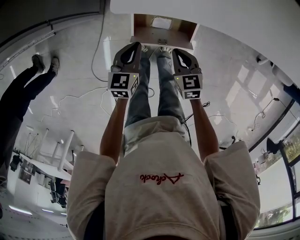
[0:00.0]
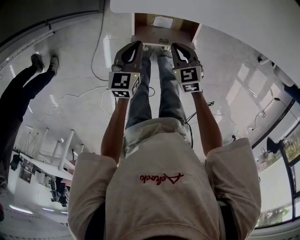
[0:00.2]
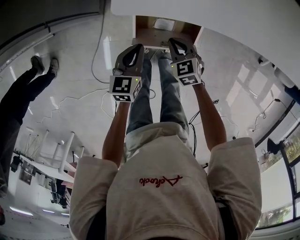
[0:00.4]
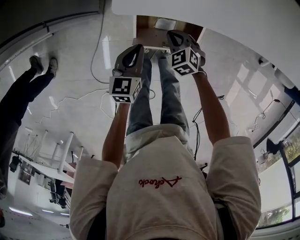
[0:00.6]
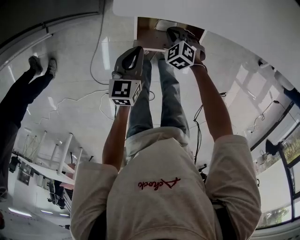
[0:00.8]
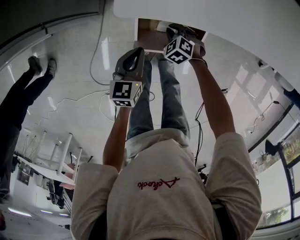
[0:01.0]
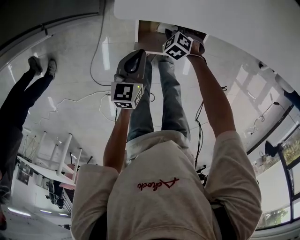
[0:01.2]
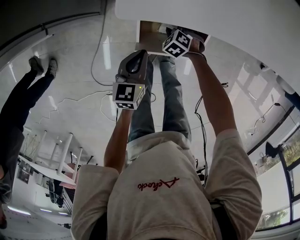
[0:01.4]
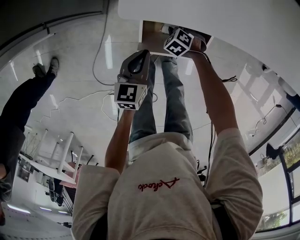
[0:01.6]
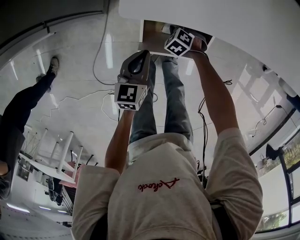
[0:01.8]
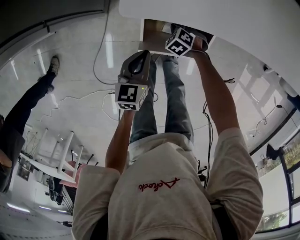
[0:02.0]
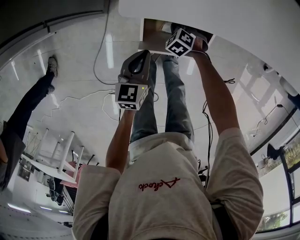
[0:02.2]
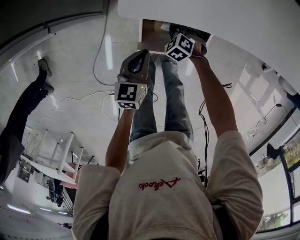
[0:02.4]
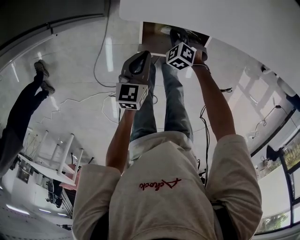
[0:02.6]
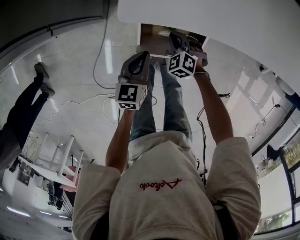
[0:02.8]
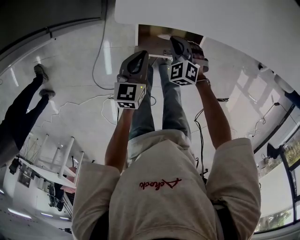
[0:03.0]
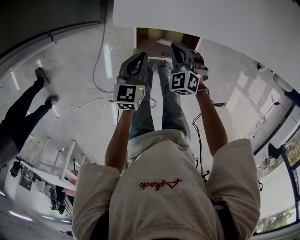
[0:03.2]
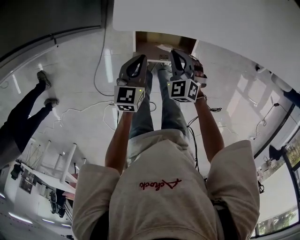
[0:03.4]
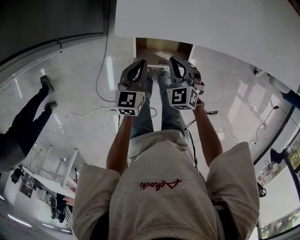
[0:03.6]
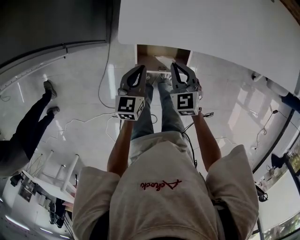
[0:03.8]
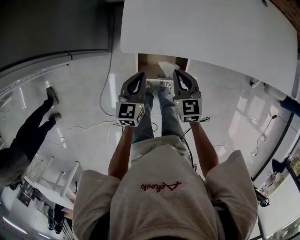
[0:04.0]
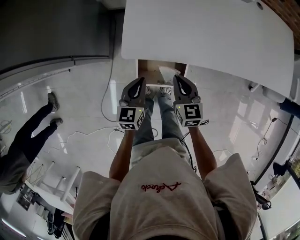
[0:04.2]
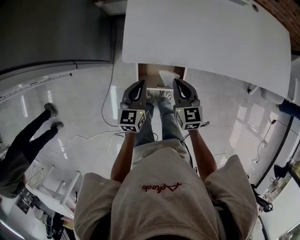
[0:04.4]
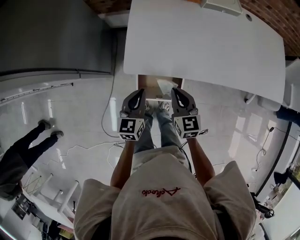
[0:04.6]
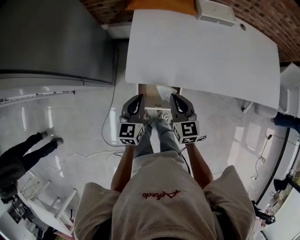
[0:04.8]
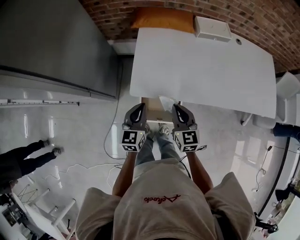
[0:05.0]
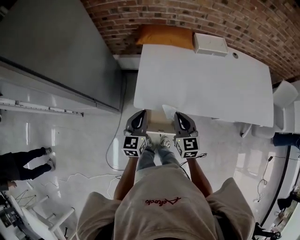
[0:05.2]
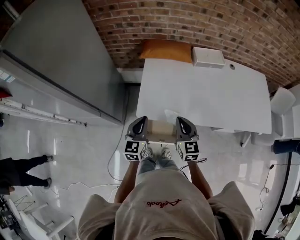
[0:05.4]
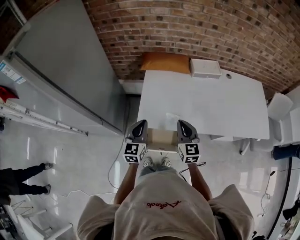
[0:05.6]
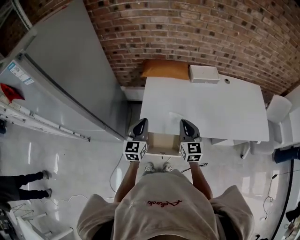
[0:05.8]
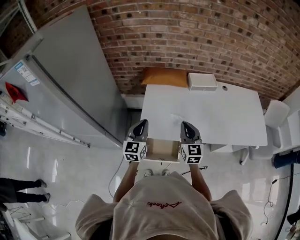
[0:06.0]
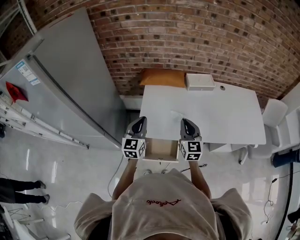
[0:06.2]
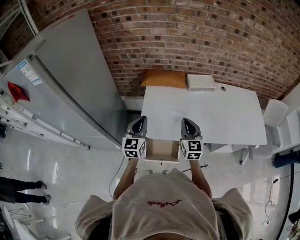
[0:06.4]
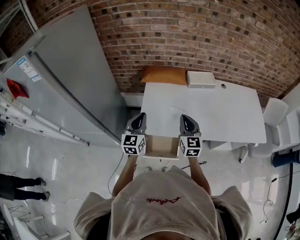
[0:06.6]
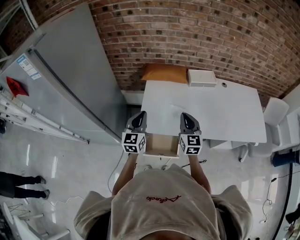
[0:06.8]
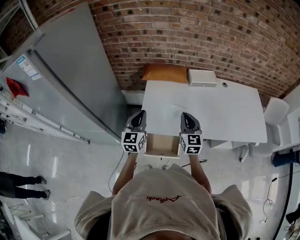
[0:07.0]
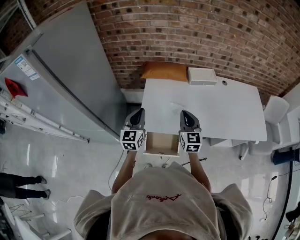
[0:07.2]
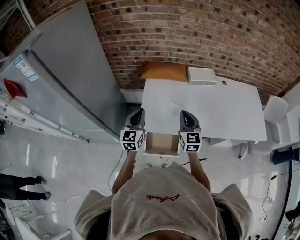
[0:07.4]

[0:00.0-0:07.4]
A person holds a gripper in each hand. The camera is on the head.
0:00.0 to 0:01.4: The right gripper shifts roughly 20 cm downward and forward, rotates around the line of its fingers by about 40 degrees, counterclockwise from behind, and opens its fingers.
0:01.4 to 0:03.0: The right gripper moves upward, approximately 10 cm, swivels approximately 20 degrees, and closes.
0:03.0 to 0:04.4: The left gripper heads upward, covering about 15 cm; the right gripper goes approximately 25 cm upward, and twists roughly 50 degrees clockwise, seen from behind.
0:04.4 to 0:06.0: The grippers both shift upward by some 25 cm. The left gripper swivels roughly 20 degrees. Meanwhile the right gripper turns by some 20 degrees.
0:06.0 to 0:07.4: There are only small adjustments of the grippers.

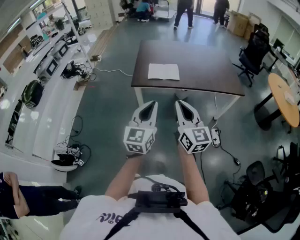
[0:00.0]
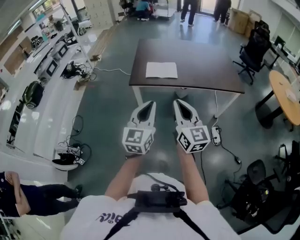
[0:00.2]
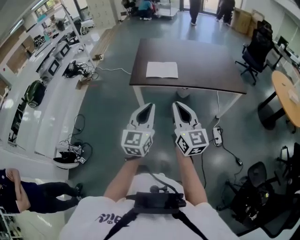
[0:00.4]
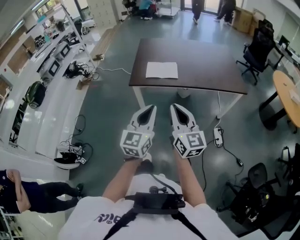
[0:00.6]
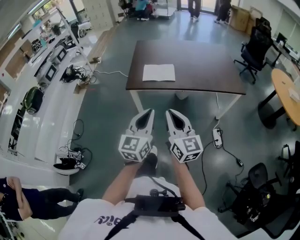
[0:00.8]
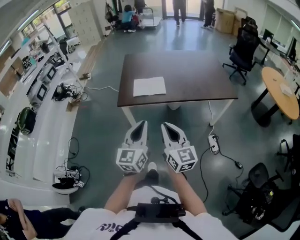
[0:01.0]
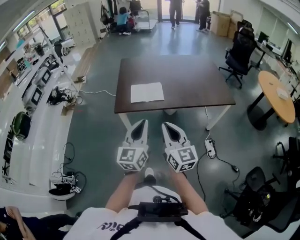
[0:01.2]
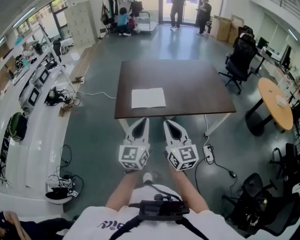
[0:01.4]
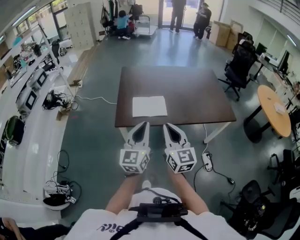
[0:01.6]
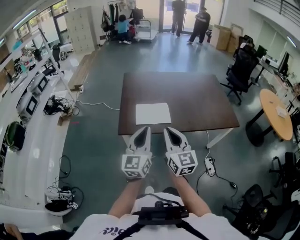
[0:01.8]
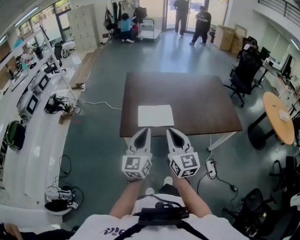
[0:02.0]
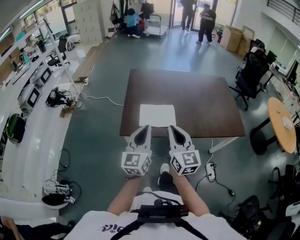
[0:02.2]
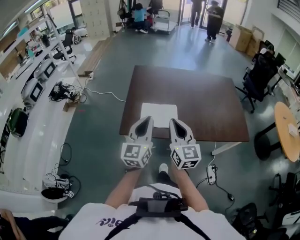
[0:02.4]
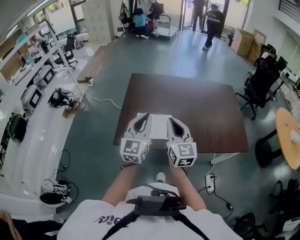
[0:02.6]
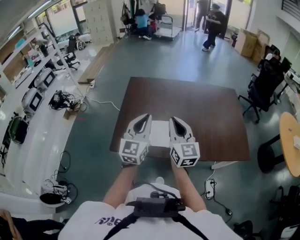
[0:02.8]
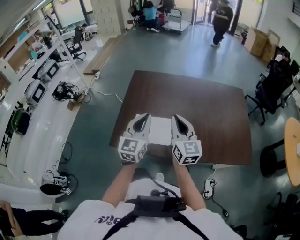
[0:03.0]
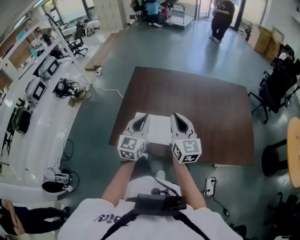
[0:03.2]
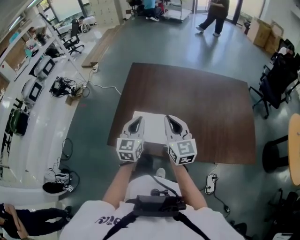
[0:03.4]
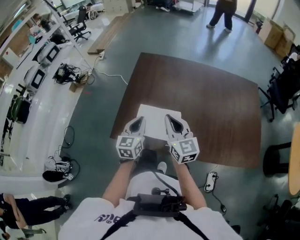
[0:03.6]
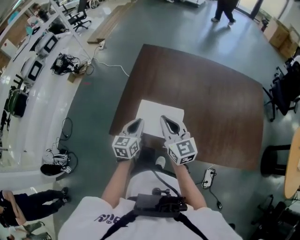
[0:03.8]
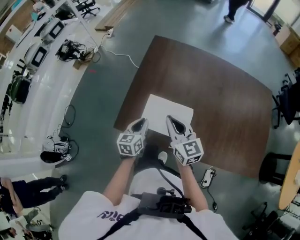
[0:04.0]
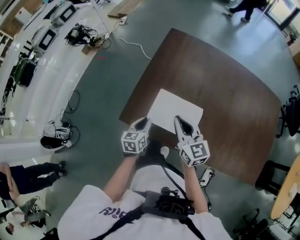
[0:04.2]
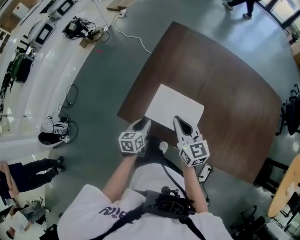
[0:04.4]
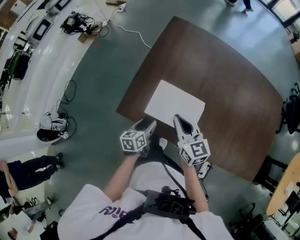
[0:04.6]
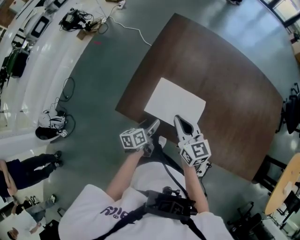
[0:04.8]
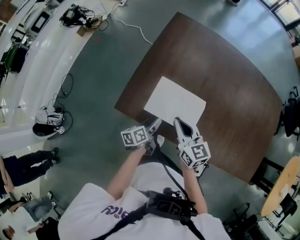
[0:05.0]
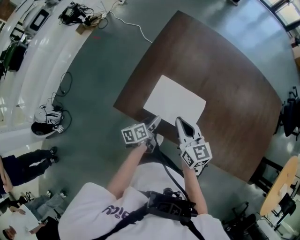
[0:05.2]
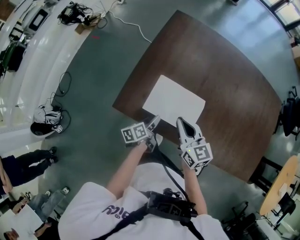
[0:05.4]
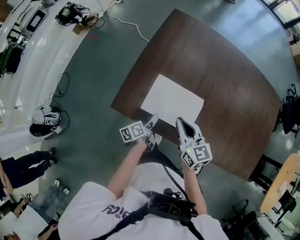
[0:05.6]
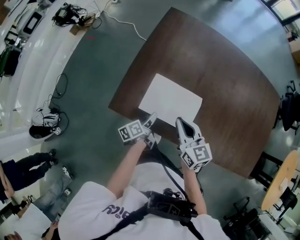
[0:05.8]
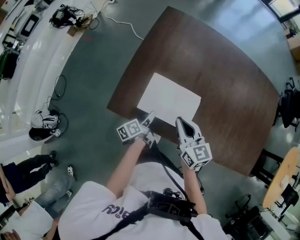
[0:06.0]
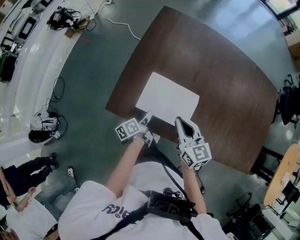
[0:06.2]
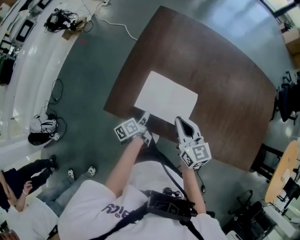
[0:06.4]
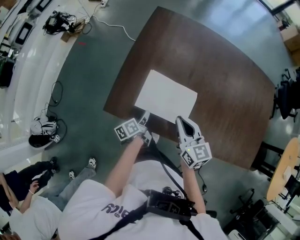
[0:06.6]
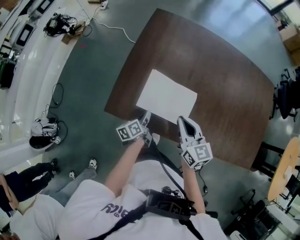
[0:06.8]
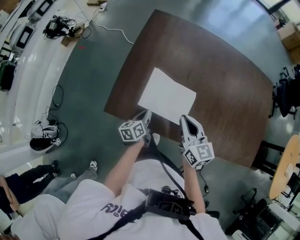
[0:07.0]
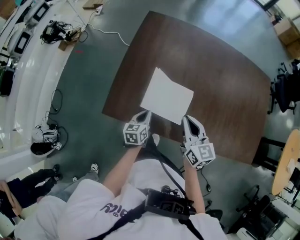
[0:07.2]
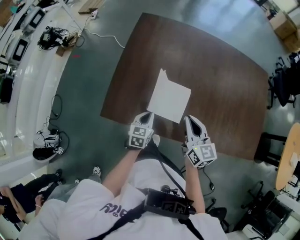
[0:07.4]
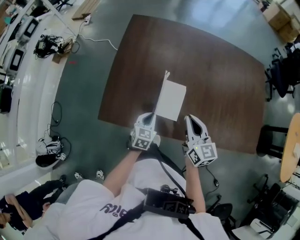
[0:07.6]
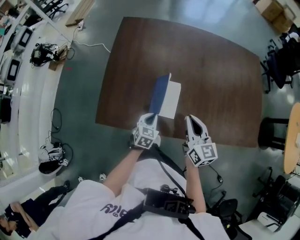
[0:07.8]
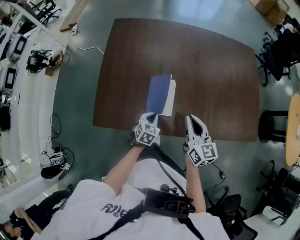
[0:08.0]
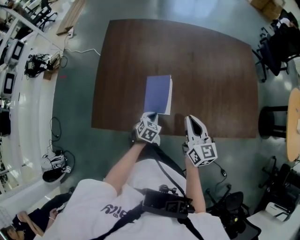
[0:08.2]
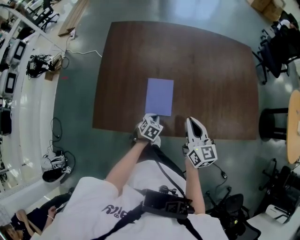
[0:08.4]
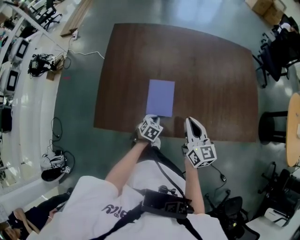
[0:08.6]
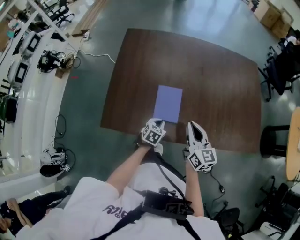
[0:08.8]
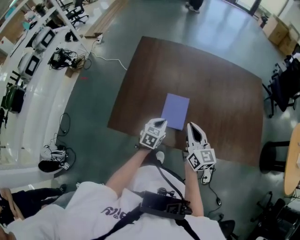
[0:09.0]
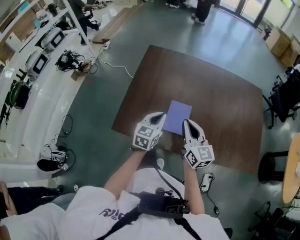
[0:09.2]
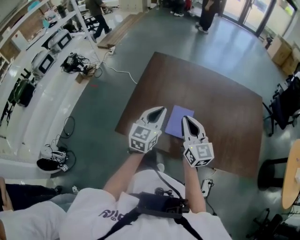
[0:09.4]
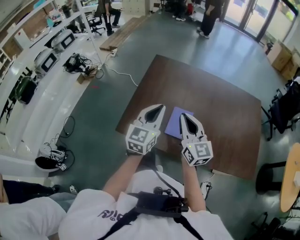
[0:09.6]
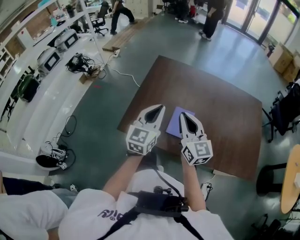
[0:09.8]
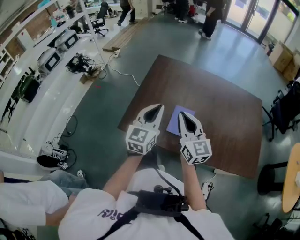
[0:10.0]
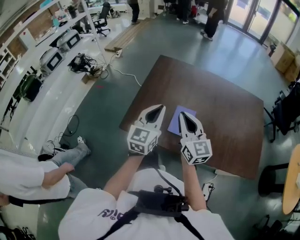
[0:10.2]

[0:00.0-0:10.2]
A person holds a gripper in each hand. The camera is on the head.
0:00.0 to 0:01.4: Both grippers travel together forward, roughly 20 cm.
0:01.4 to 0:03.0: The pair of grippers is taken forward, approximately 40 cm.
0:03.0 to 0:04.4: The left gripper travels downward and to the left by roughly 40 cm, and tilts its fingers roughly 40 degrees downward; the right gripper shifts about 25 cm downward, to the left and forward, and swivels some 30 degrees.
0:04.4 to 0:05.8: The left gripper shifts roughly 10 cm downward and to the right, turns by about 40 degrees, and opens its fingers, while the right gripper changes place by some 5 cm.
0:05.8 to 0:07.2: The left gripper twists about 50 degrees clockwise, seen from behind, and closes. Meanwhile the right gripper shifts some 5 cm to the right.
0:07.2 to 0:08.8: The two grippers go about 15 cm to the right. The left gripper rotates roughly 40 degrees.
0:08.8 to 0:10.2: The right gripper heads upward and to the left, covering roughly 20 cm, and rotates some 30 degrees. Meanwhile the left gripper heads upward, covering approximately 35 cm, and tips its fingers upward by roughly 50 degrees.

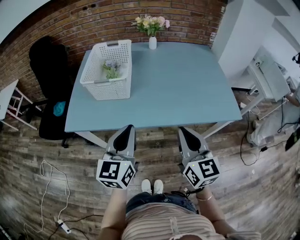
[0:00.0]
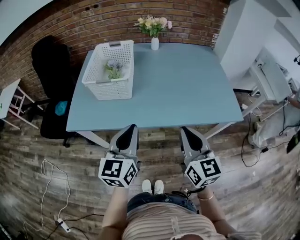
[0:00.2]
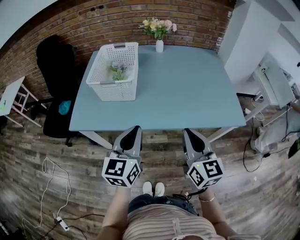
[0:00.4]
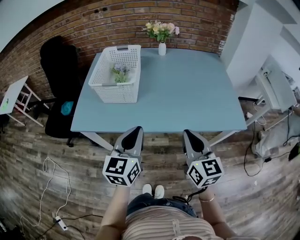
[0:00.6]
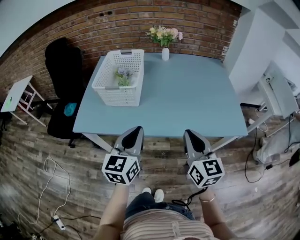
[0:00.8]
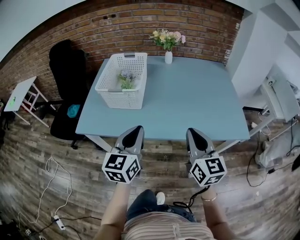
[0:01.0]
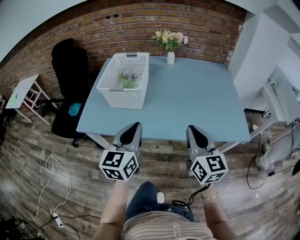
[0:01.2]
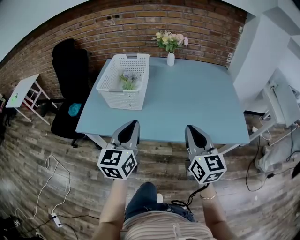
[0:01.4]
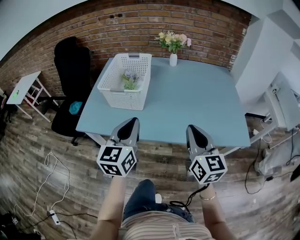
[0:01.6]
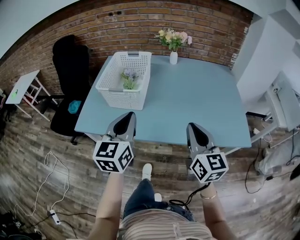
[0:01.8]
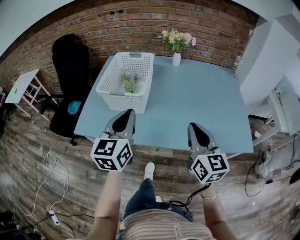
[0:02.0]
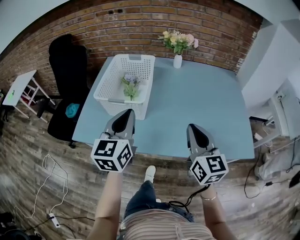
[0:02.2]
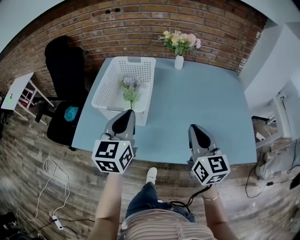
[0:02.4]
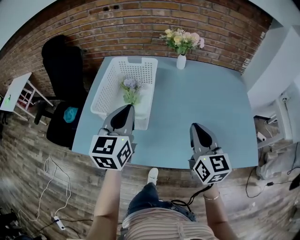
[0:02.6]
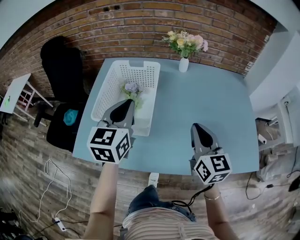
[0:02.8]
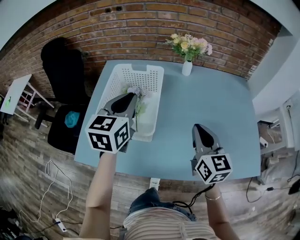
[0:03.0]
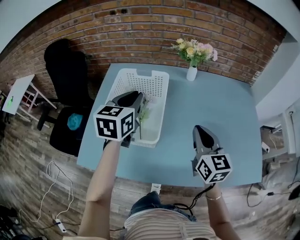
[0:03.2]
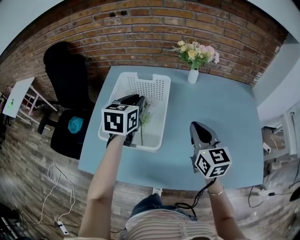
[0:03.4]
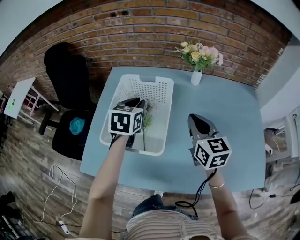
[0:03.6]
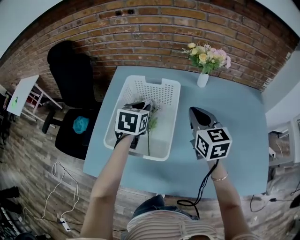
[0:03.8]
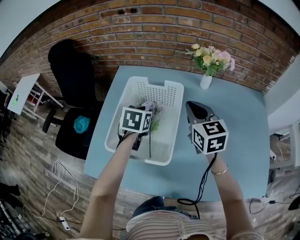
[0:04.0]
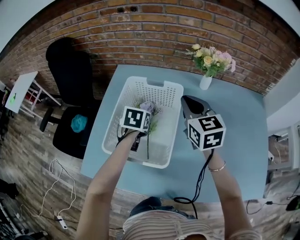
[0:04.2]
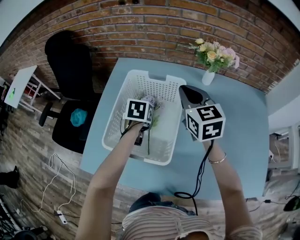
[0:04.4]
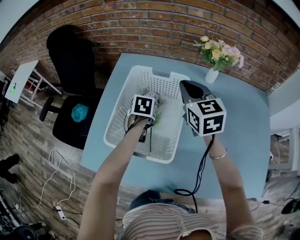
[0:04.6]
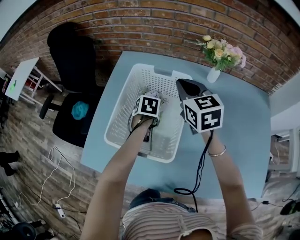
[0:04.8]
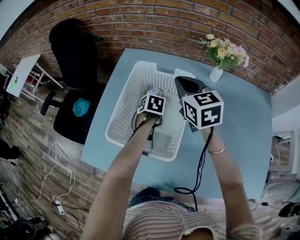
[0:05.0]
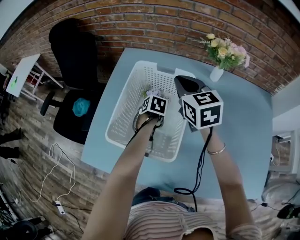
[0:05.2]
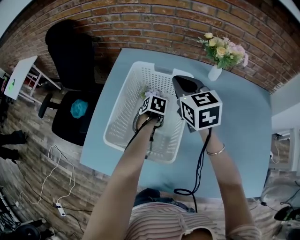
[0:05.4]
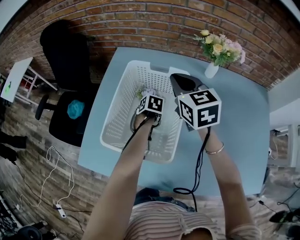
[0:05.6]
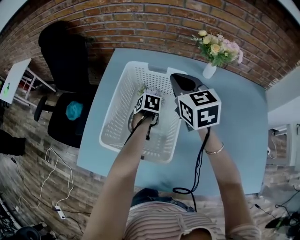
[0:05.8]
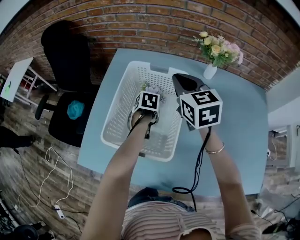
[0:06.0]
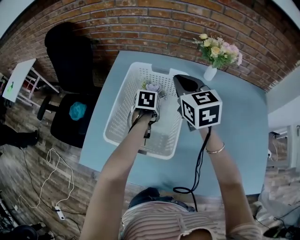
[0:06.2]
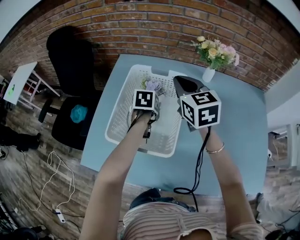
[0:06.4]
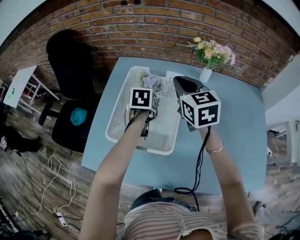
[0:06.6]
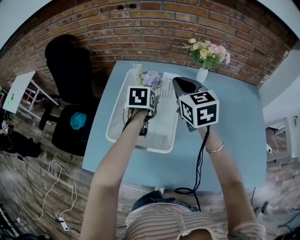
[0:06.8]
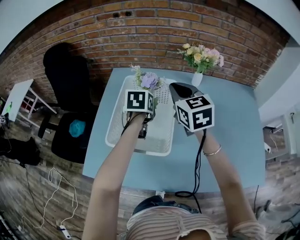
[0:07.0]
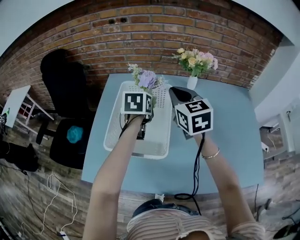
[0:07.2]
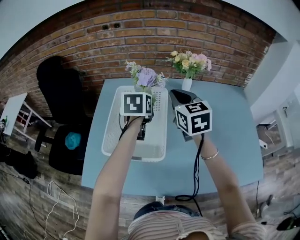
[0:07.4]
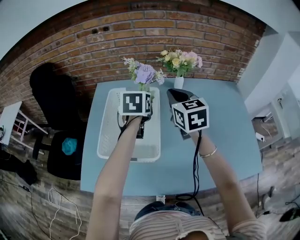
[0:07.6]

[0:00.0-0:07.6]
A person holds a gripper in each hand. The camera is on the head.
0:00.0 to 0:01.6: Both grippers move forward, roughly 5 cm.
0:01.6 to 0:03.0: The two grippers go roughly 25 cm forward.
0:03.0 to 0:04.6: The left gripper goes about 25 cm downward and forward, tips its fingers downward by some 50 degrees, and opens; the right gripper moves forward and to the left, about 30 cm, and rotates about 20 degrees.
0:04.6 to 0:06.0: The left gripper heads downward, covering approximately 5 cm, and closes.
0:06.0 to 0:07.6: The right gripper shifts approximately 10 cm to the right and backward. The left gripper shifts some 25 cm upward, and tilts its fingers approximately 40 degrees upward.
